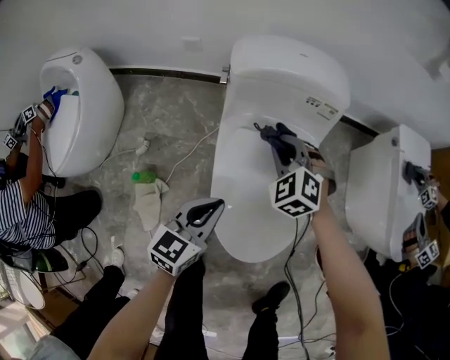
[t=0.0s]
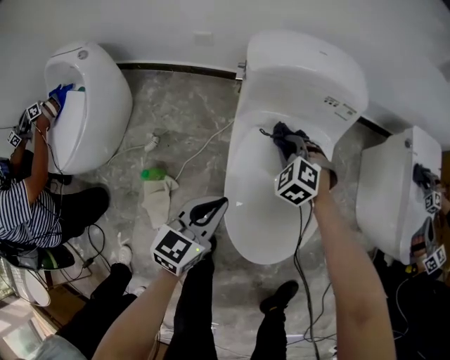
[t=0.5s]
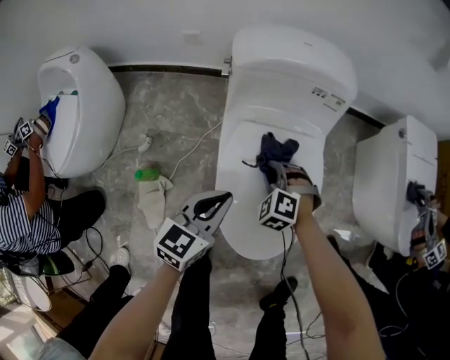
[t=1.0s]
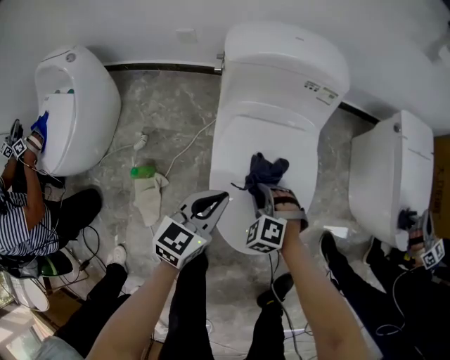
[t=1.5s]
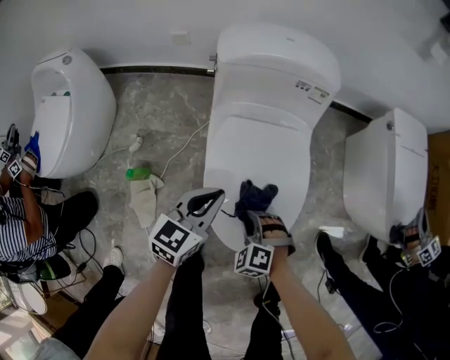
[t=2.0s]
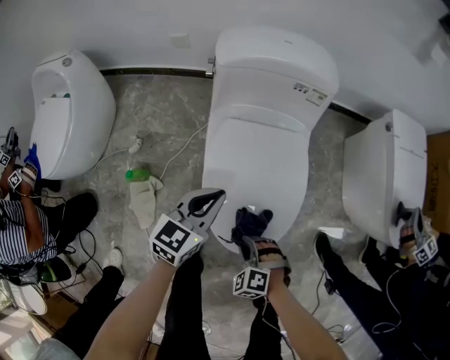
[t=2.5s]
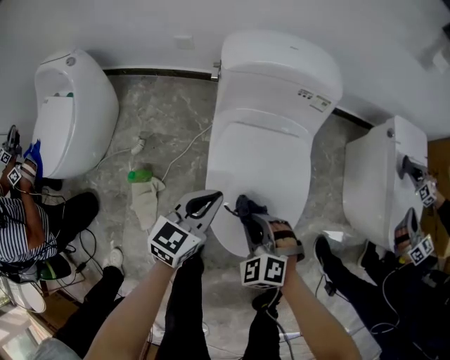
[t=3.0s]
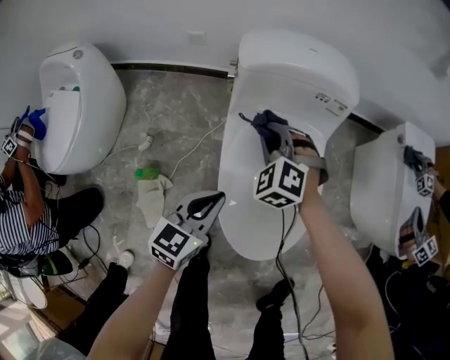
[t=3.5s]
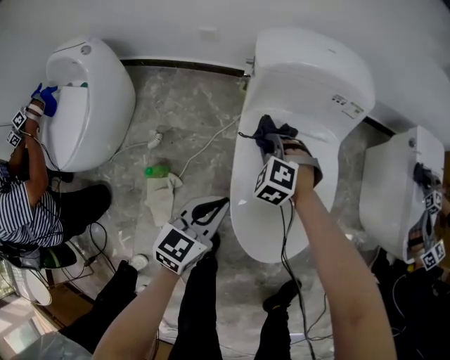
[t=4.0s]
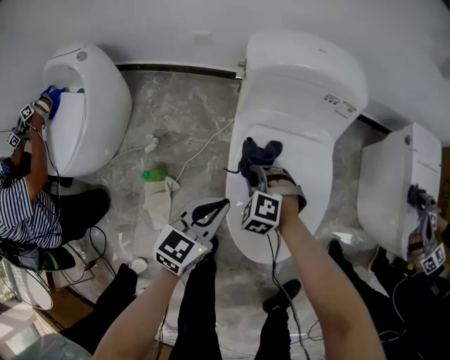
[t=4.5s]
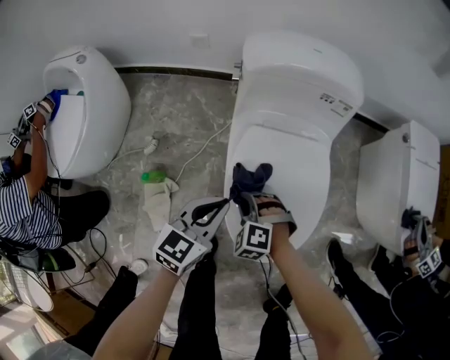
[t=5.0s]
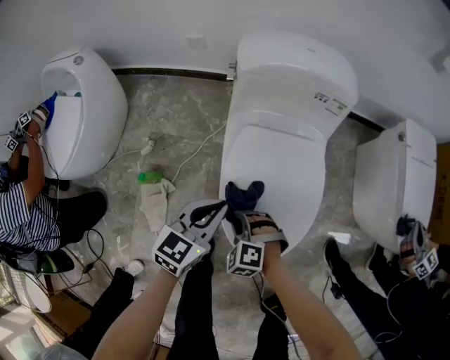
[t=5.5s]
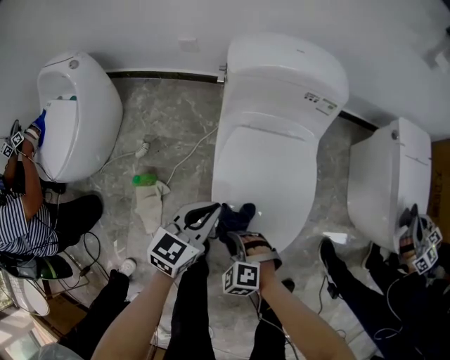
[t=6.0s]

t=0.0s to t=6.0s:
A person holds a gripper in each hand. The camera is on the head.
t=0.0s to t=2.0s: The right gripper travels backward and downward by roughly 30 cm.
t=2.0s to t=4.0s: The right gripper goes roughly 25 cm forward and to the left, while the left gripper shifts approximately 5 cm to the left.
t=4.0s to t=6.0s: The right gripper shifts some 30 cm backward.

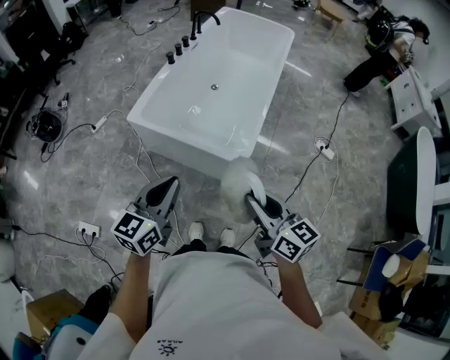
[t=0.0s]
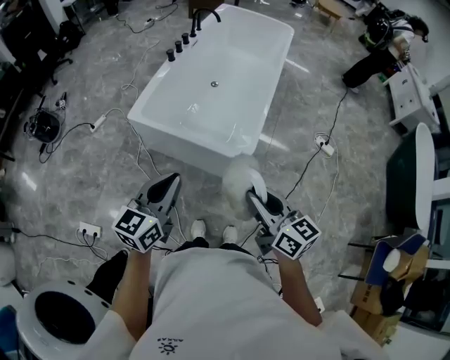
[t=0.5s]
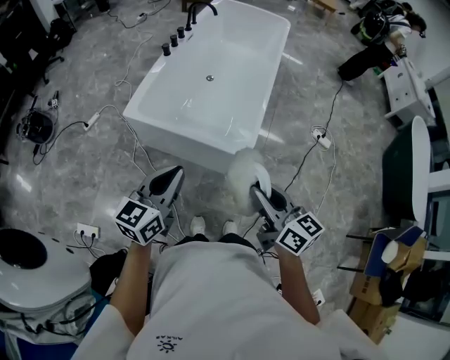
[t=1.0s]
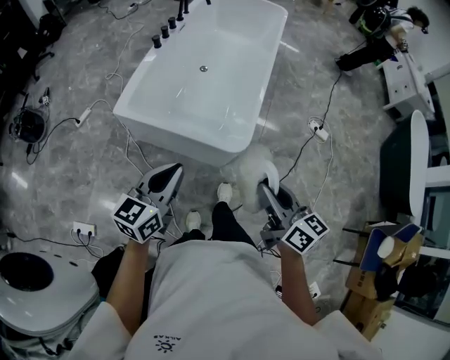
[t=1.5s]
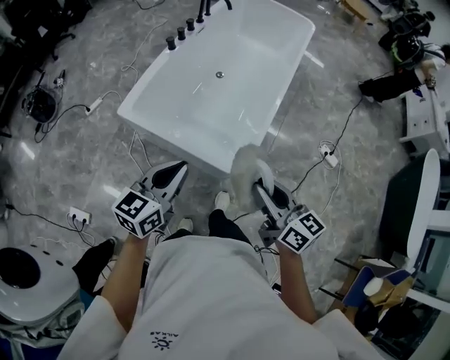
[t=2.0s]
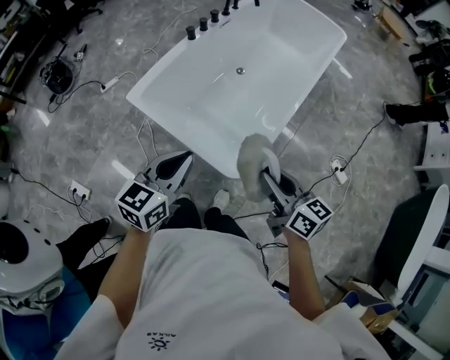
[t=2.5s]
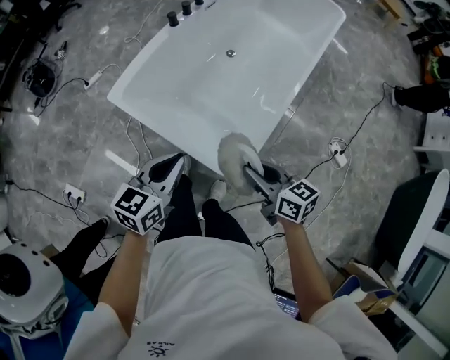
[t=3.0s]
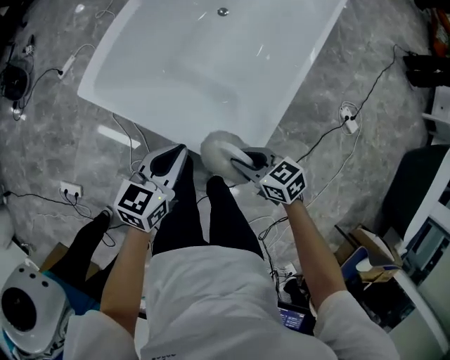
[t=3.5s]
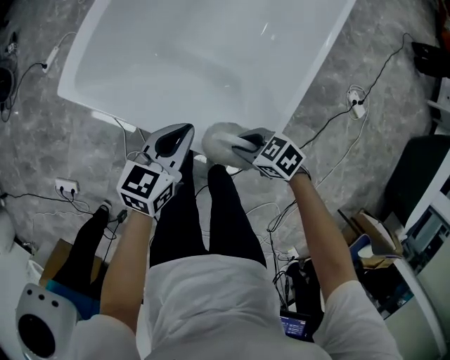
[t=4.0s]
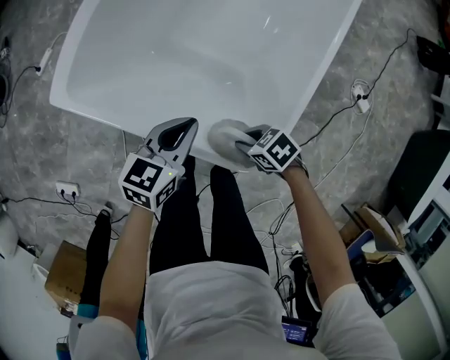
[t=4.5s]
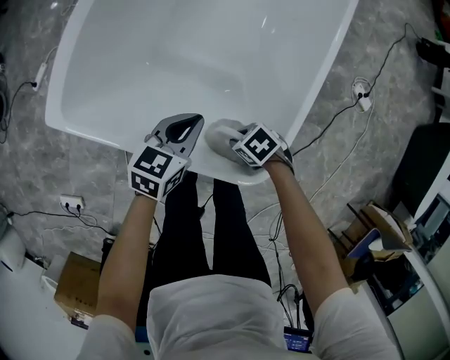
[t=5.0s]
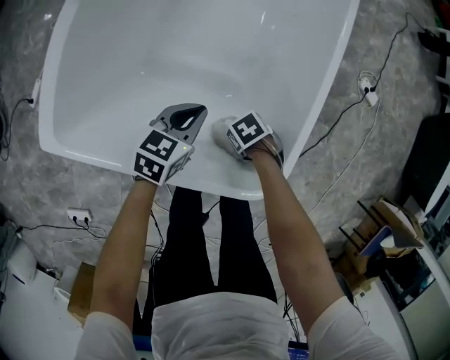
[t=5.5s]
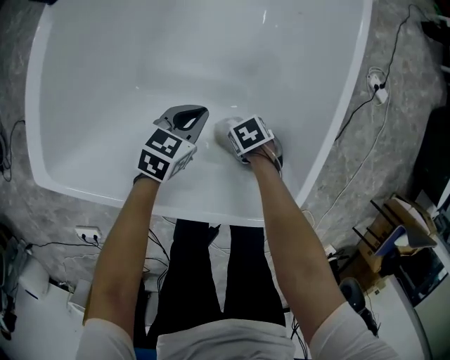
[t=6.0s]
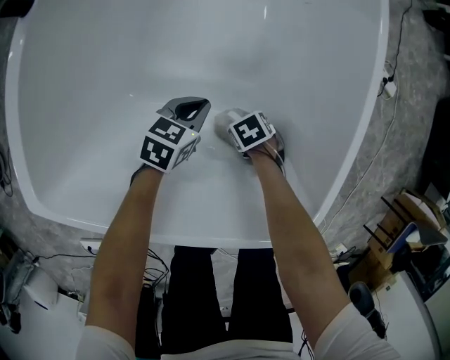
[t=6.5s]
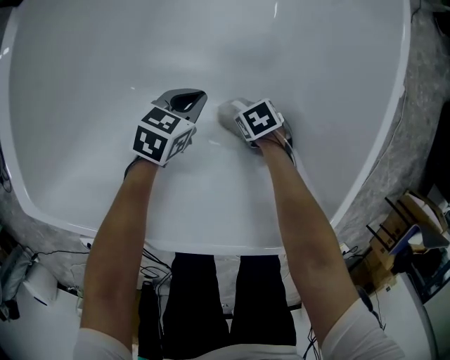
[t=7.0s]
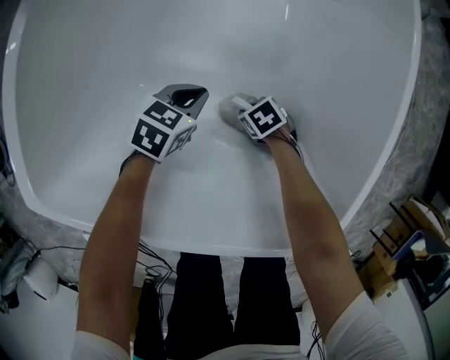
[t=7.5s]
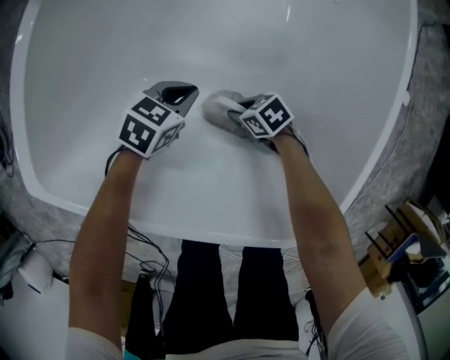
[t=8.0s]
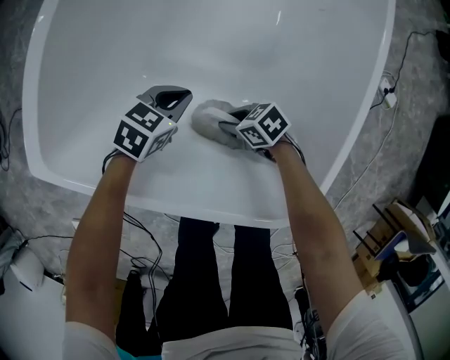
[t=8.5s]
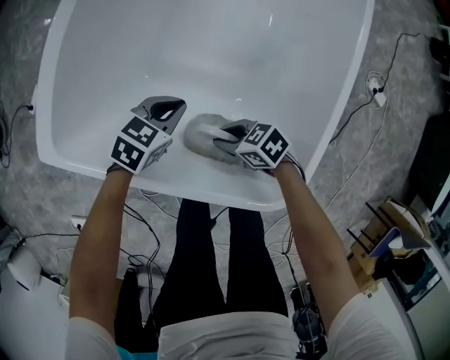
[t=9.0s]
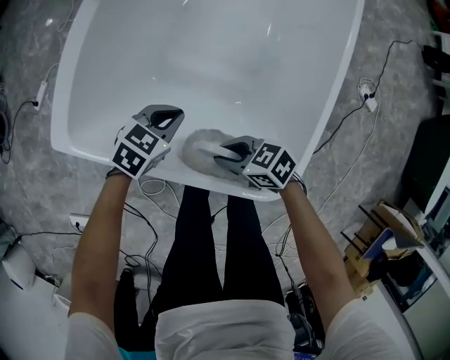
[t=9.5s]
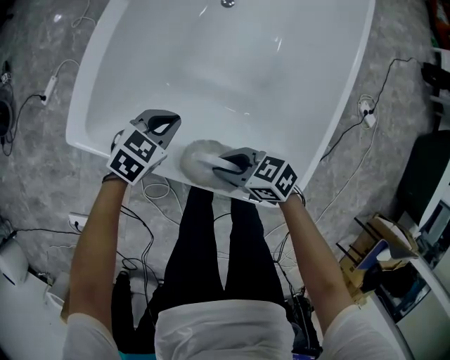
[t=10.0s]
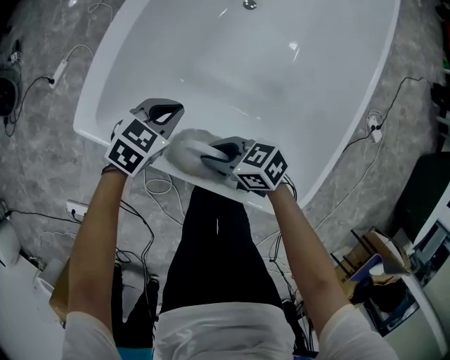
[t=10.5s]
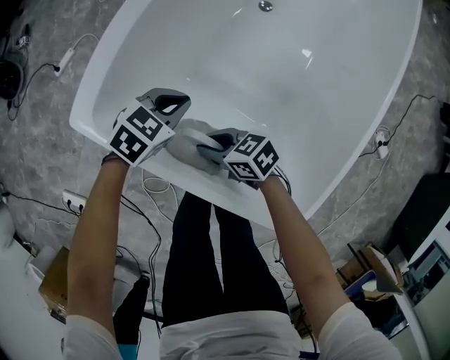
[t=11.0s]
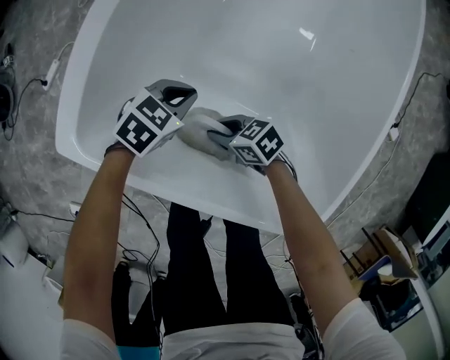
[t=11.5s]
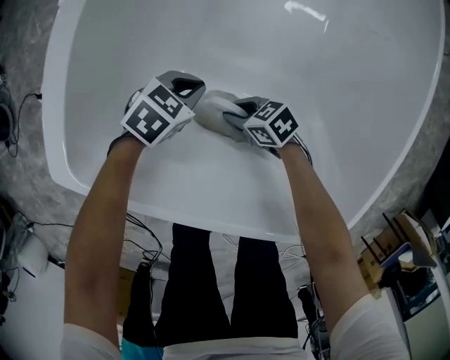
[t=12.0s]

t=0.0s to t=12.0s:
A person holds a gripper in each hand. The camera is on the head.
t=0.0s to t=2.0s: Both grippers travel together forward, about 15 cm.
t=2.0s to t=4.0s: Both grippers travel together downward, roughly 35 cm. The right gripper angles its fingers downward, by roughly 40 degrees.
t=4.0s to t=6.0s: The grippers both shift downward by about 25 cm. The left gripper changes its angle by some 30 degrees. The right gripper turns by some 50 degrees.
t=6.0s to t=8.0s: The right gripper ends up some 10 cm from where it was, and changes its angle by about 30 degrees; the left gripper shifts about 10 cm downward.
t=8.0s to t=10.0s: The left gripper moves upward, roughly 20 cm, while the right gripper shifts approximately 30 cm upward, and swivels approximately 20 degrees.
t=10.0s to t=12.0s: The two grippers go roughly 20 cm downward.

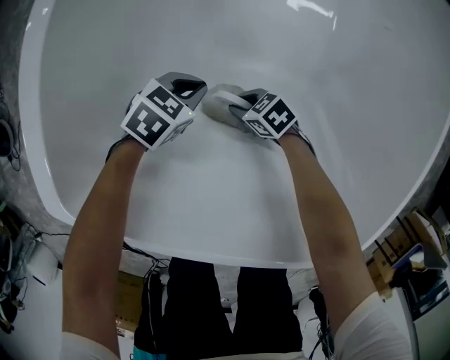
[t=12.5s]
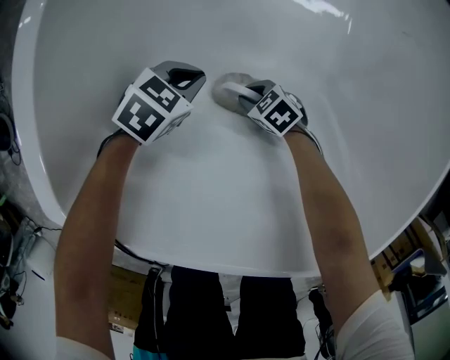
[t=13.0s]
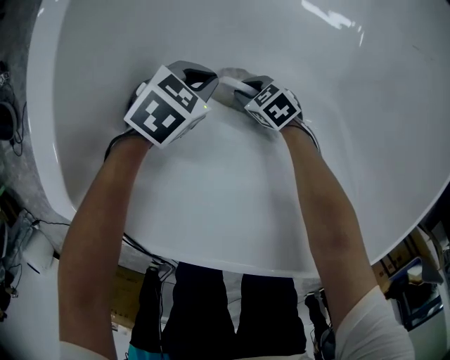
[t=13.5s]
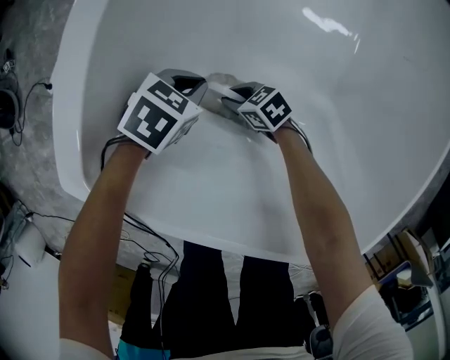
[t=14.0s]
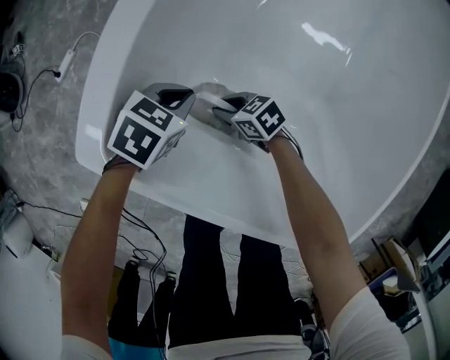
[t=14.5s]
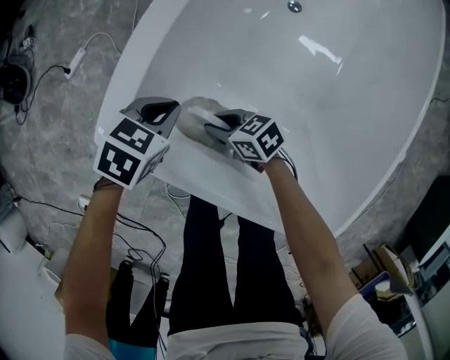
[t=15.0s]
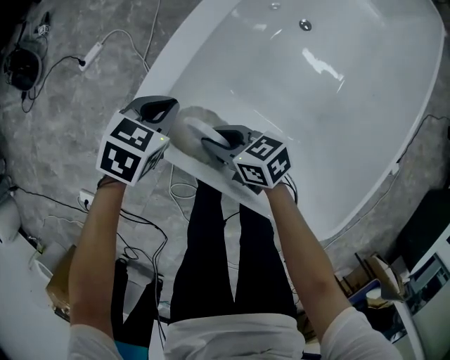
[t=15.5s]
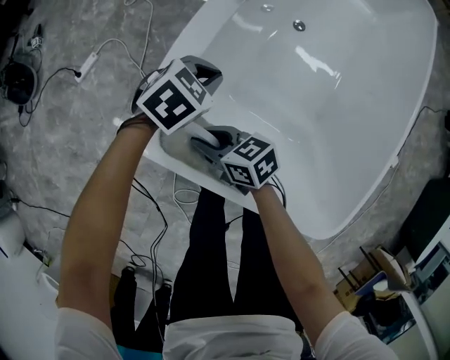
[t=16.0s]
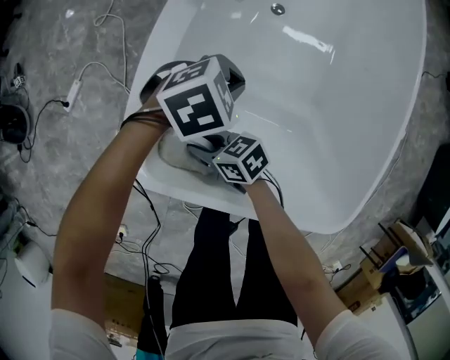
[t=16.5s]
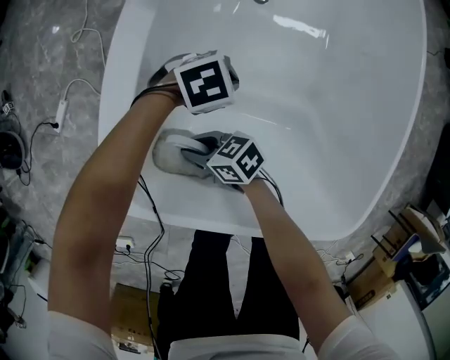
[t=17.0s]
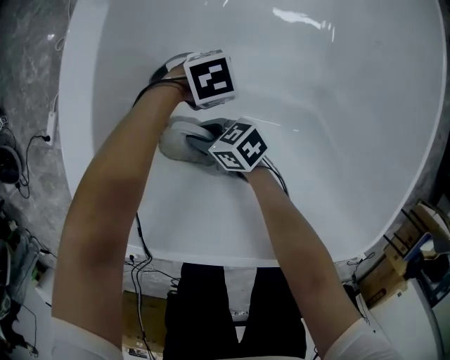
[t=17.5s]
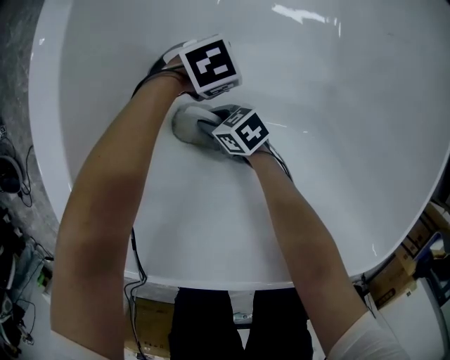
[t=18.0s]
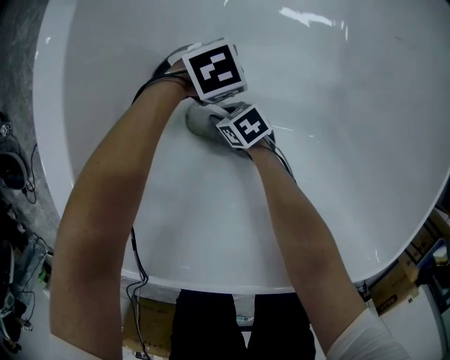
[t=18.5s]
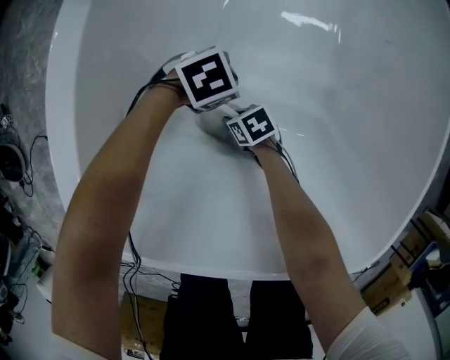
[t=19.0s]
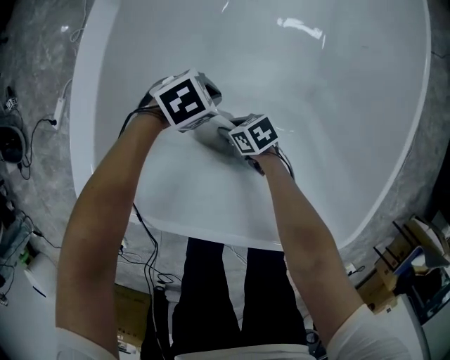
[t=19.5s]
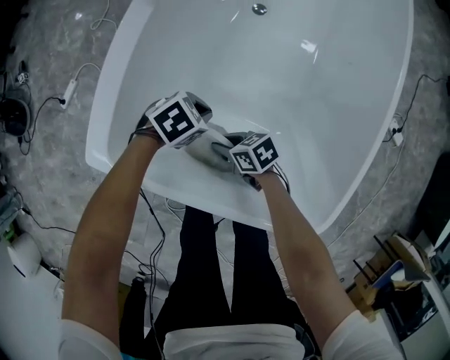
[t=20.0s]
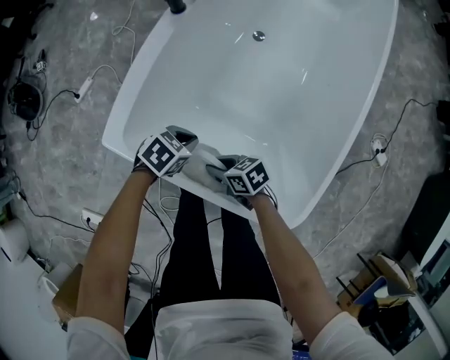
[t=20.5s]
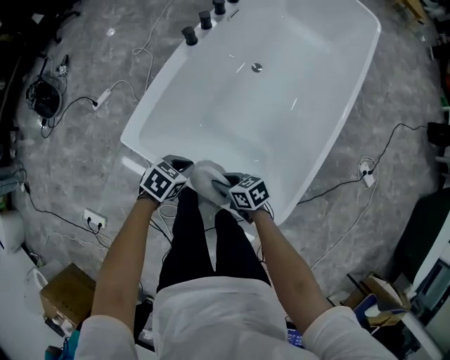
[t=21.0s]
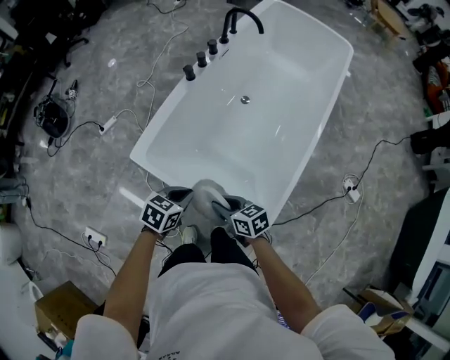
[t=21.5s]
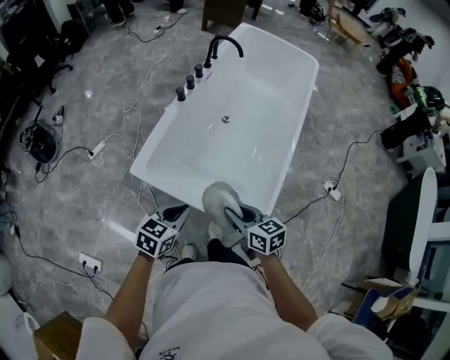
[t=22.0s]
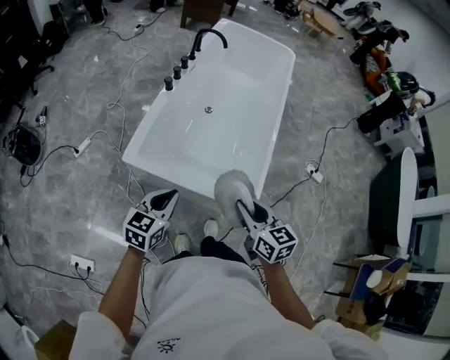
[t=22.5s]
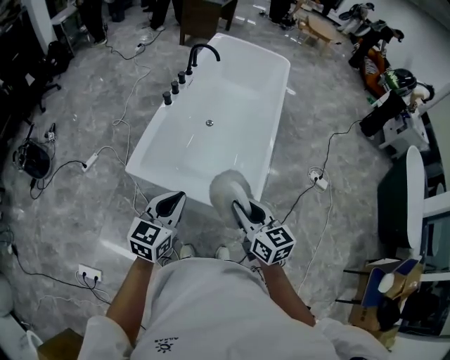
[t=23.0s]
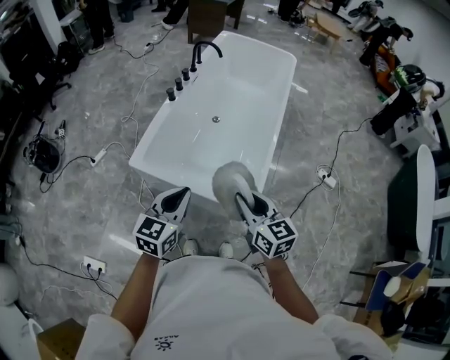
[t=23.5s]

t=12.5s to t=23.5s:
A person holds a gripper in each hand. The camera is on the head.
t=12.5s to t=14.5s: The left gripper heads upward, covering roughly 15 cm. The right gripper ends up approximately 15 cm from where it was.
t=14.5s to t=16.0s: The left gripper shifts some 10 cm upward. Meanwhile the right gripper goes roughly 20 cm upward.
t=16.0s to t=18.0s: Both grippers move downward, some 30 cm. The left gripper changes its angle by roughly 40 degrees.
t=18.0s to t=20.0s: Both grippers move upward, roughly 15 cm. The left gripper turns by about 20 degrees.
t=20.0s to t=21.5s: Both grippers travel together upward, roughly 30 cm. The left gripper rotates approximately 40 degrees.
t=21.5s to t=23.5s: The two grippers go roughly 25 cm upward and backward. The right gripper turns by some 40 degrees. The left gripper angles its fingers upward, by approximately 30 degrees.
